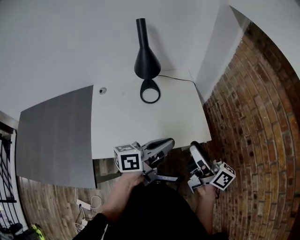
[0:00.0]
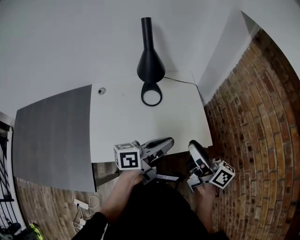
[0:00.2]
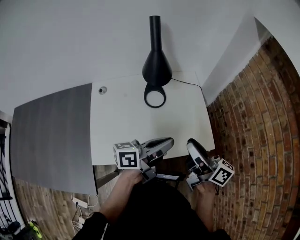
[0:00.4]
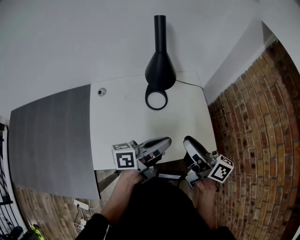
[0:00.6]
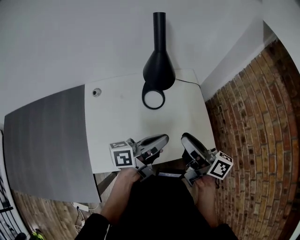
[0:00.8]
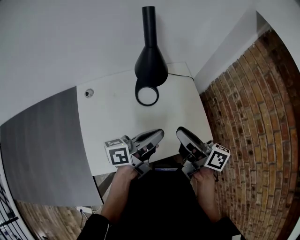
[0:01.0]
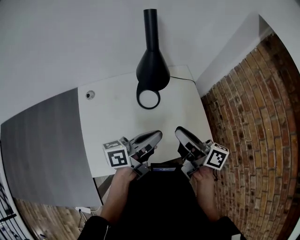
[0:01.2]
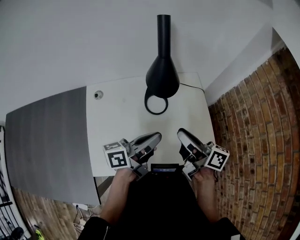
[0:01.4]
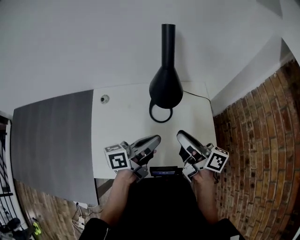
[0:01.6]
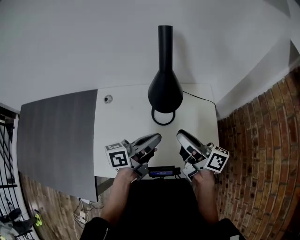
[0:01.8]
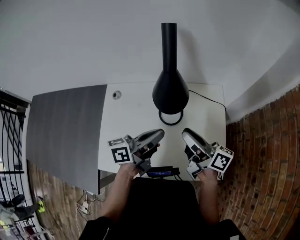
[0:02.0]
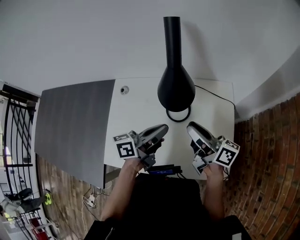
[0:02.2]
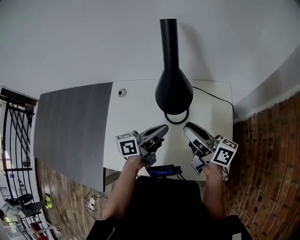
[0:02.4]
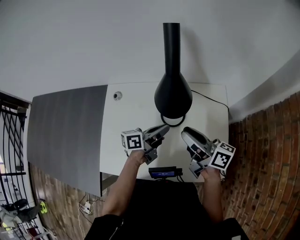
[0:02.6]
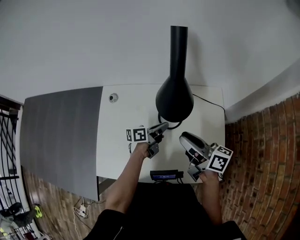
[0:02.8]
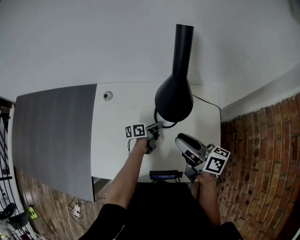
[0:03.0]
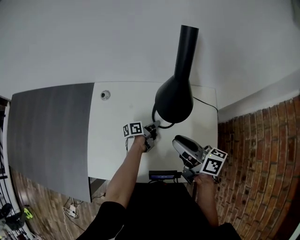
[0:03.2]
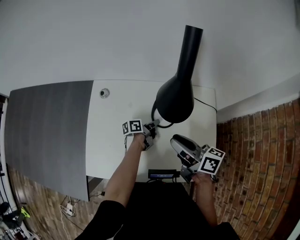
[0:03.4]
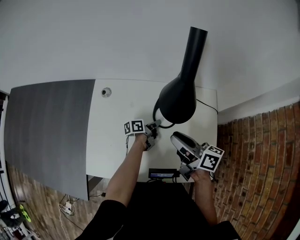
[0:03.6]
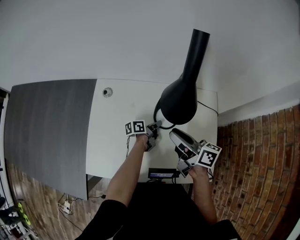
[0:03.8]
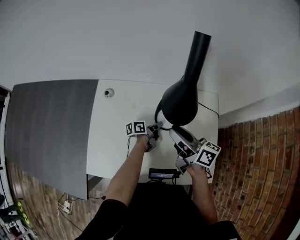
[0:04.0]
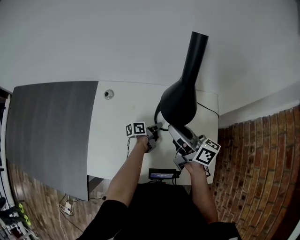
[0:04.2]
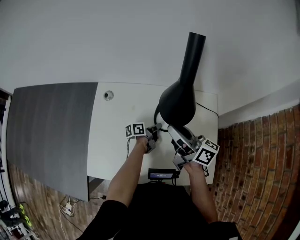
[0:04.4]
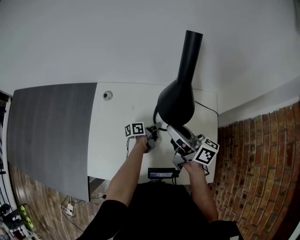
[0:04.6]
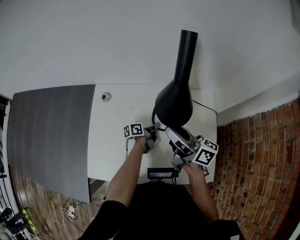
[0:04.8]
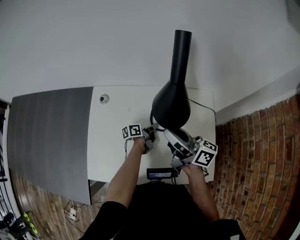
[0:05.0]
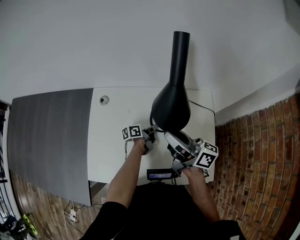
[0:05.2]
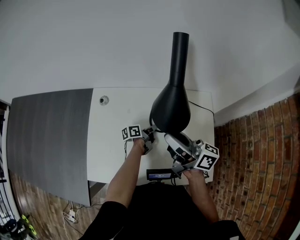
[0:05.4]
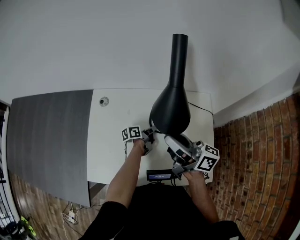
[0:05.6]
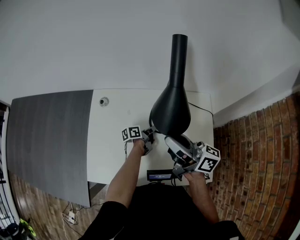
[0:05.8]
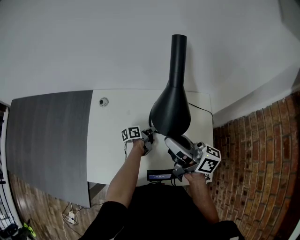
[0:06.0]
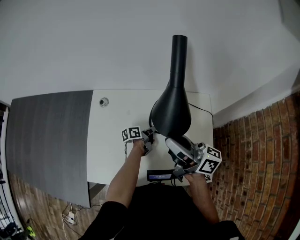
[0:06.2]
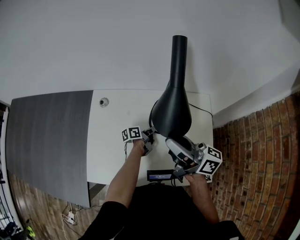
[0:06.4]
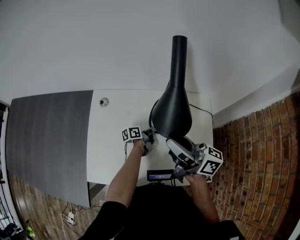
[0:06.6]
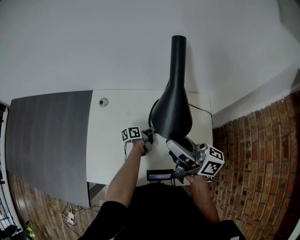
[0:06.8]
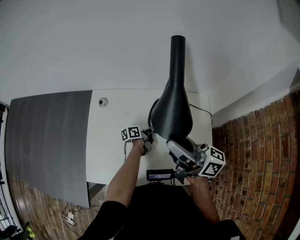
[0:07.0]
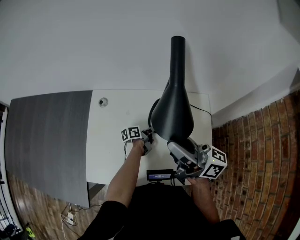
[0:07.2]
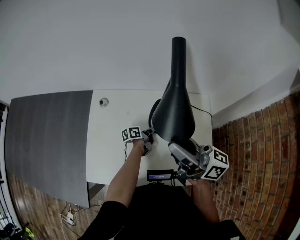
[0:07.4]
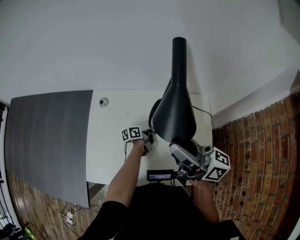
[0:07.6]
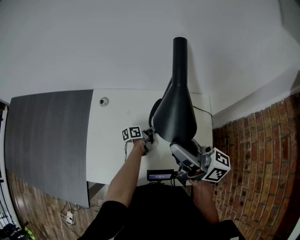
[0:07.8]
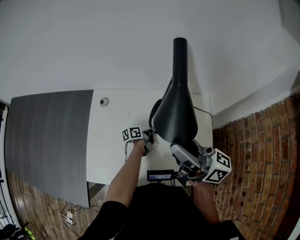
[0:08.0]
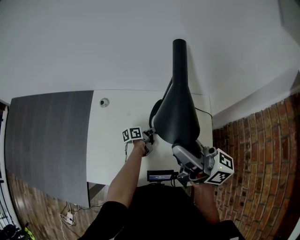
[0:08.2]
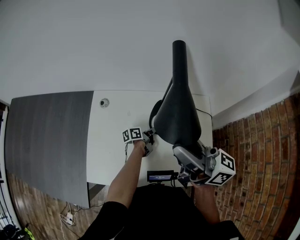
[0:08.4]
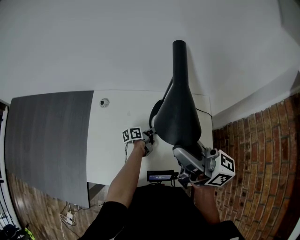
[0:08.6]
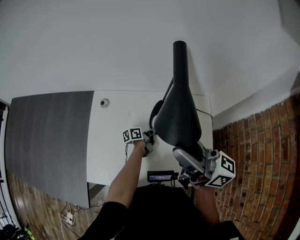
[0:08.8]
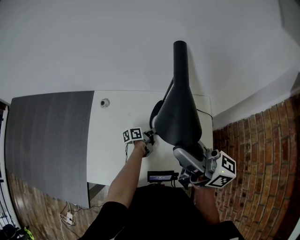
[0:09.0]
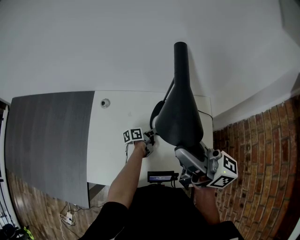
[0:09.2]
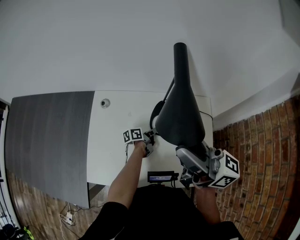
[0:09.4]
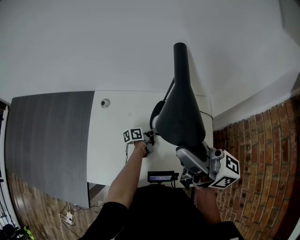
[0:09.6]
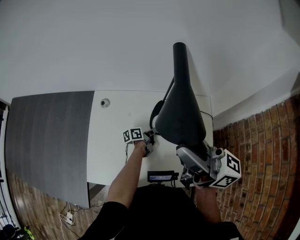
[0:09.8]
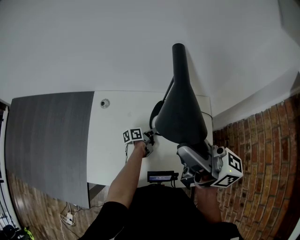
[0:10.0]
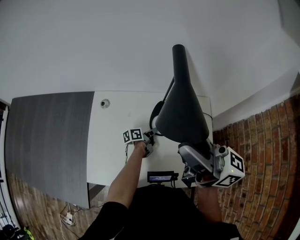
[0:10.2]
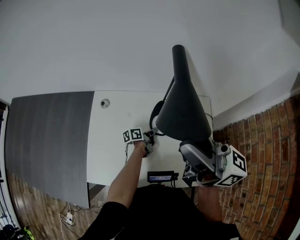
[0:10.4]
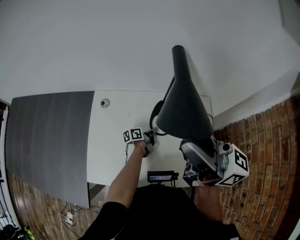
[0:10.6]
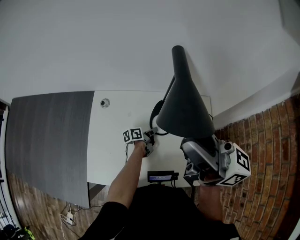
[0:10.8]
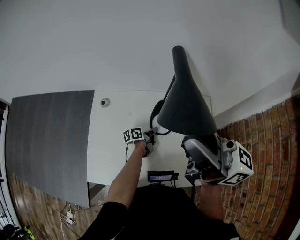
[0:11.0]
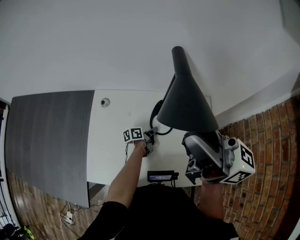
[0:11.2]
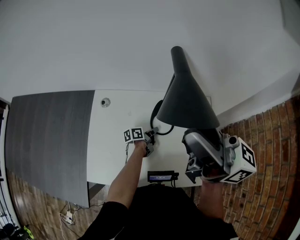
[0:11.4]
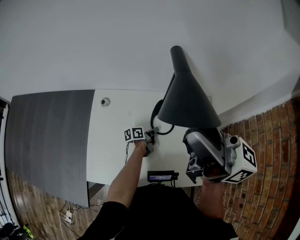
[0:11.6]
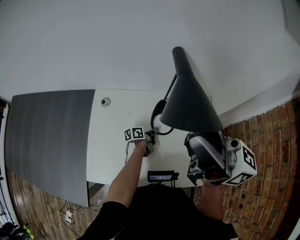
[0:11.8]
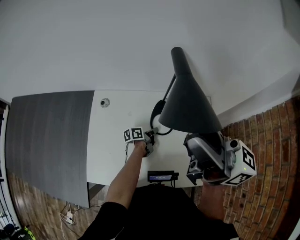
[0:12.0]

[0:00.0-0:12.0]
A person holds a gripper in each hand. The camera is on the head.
0:00.0 to 0:01.6: Both grippers travel together forward and to the left, about 25 cm.
0:01.6 to 0:03.0: The left gripper is displaced downward and forward by approximately 30 cm, and swivels about 30 degrees. Meanwhile the right gripper changes place by about 5 cm.
0:03.0 to 0:04.4: The right gripper travels forward by about 5 cm.
0:04.4 to 0:06.0: The right gripper goes approximately 5 cm upward.
0:06.0 to 0:07.6: The right gripper heads upward, covering about 5 cm.
0:07.6 to 0:09.0: The grippers move only a little.
0:09.0 to 0:10.4: The right gripper goes roughly 5 cm upward.
0:10.4 to 0:12.0: The grippers move only a little.

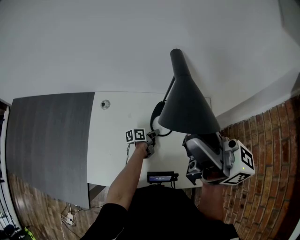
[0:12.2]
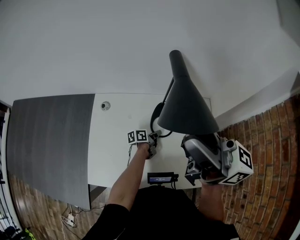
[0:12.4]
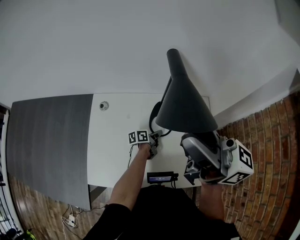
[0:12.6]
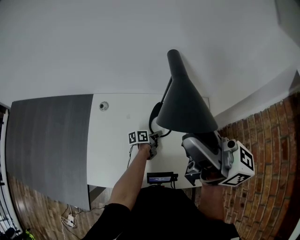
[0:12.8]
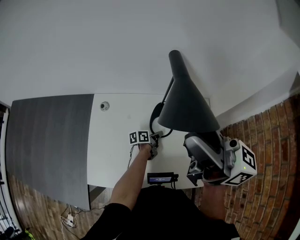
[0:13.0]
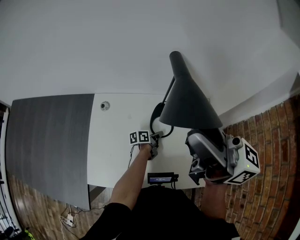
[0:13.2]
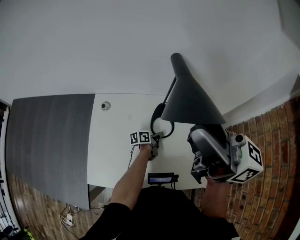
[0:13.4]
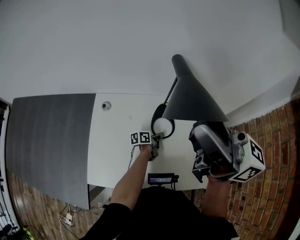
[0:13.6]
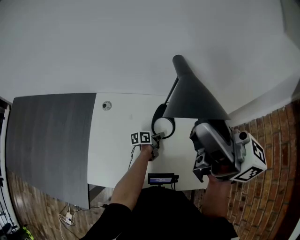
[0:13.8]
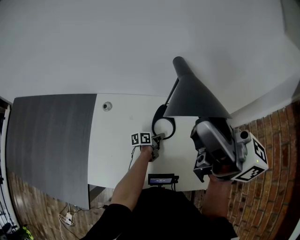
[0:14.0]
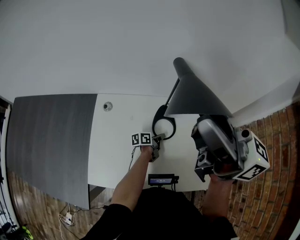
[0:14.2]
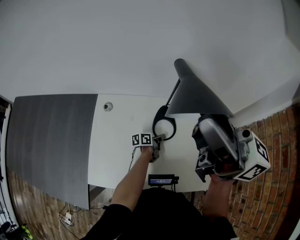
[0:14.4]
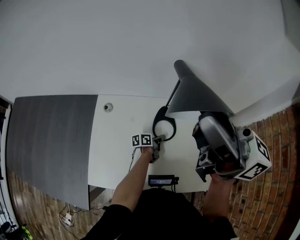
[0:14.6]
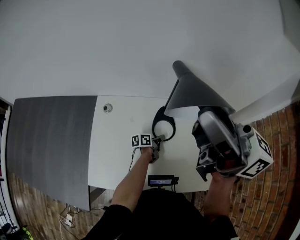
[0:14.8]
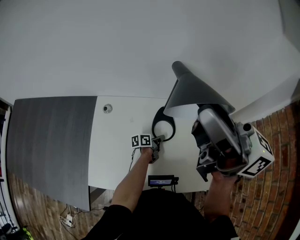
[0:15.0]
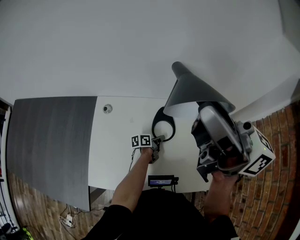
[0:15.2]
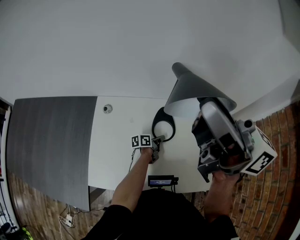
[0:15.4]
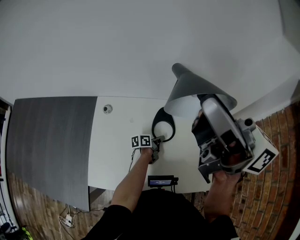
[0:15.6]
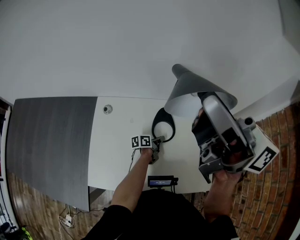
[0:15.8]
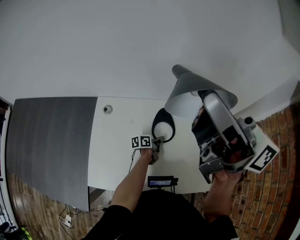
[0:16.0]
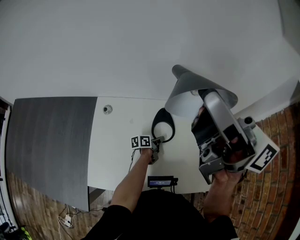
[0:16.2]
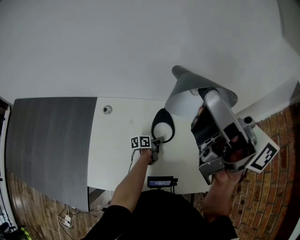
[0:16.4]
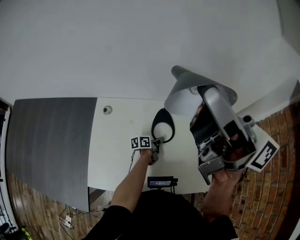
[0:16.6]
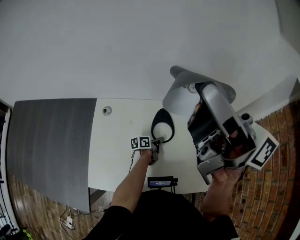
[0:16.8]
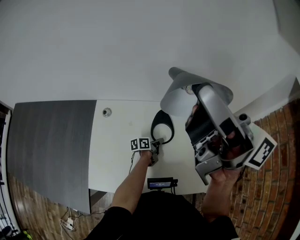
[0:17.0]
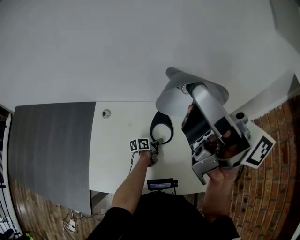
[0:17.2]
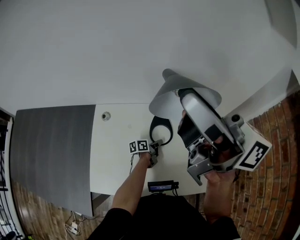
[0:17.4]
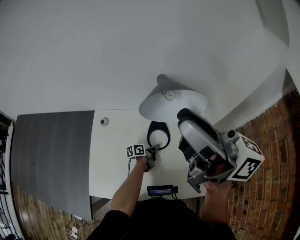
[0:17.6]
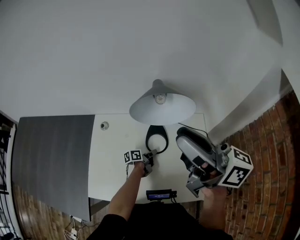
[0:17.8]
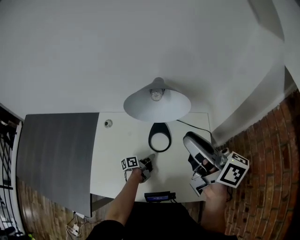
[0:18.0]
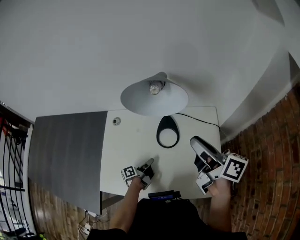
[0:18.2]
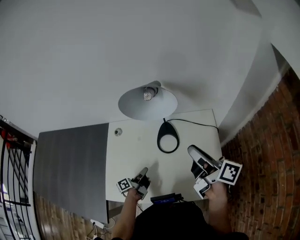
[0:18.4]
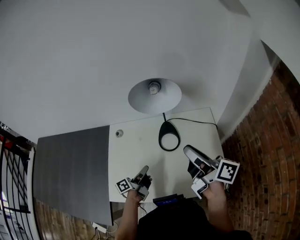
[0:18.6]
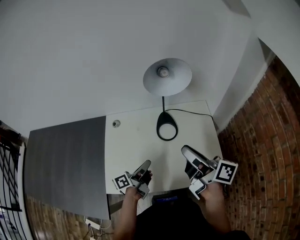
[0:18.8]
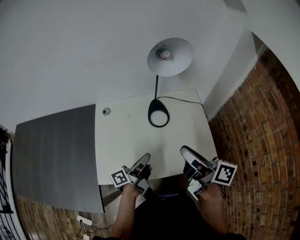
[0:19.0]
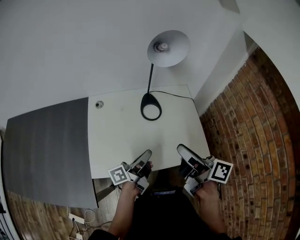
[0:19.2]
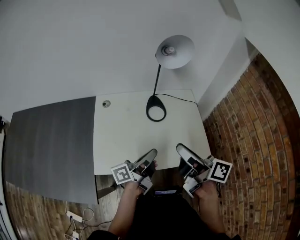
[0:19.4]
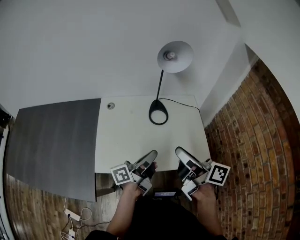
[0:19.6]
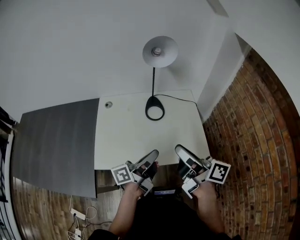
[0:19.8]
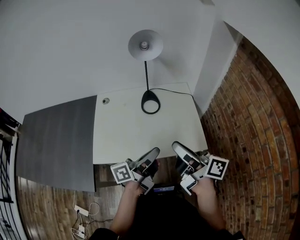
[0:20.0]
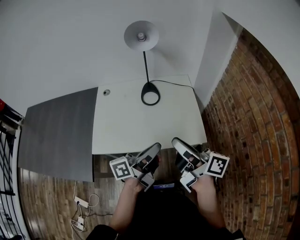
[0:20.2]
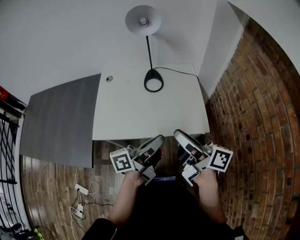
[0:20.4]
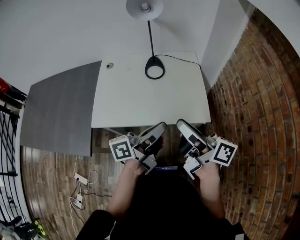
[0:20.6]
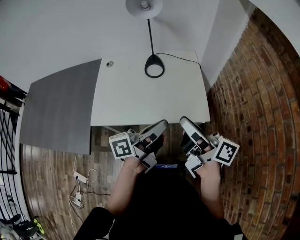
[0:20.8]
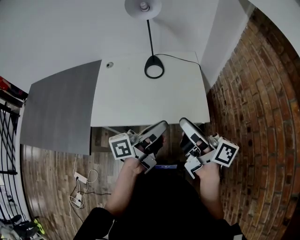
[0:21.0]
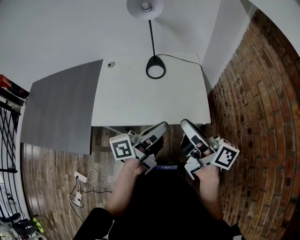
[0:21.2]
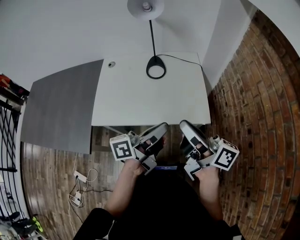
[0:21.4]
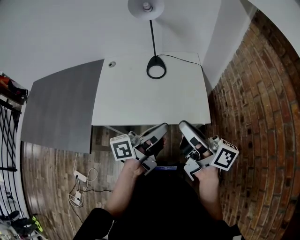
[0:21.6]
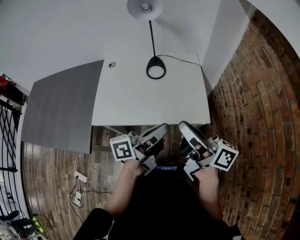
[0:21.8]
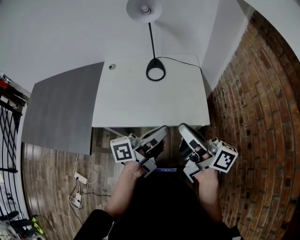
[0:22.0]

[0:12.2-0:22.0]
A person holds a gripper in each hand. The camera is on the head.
0:12.2 to 0:13.6: The grippers move only a little.
0:13.6 to 0:16.4: The grippers stay close to where they were, moving slightly.
0:16.4 to 0:17.8: The right gripper heads downward and to the right, covering approximately 10 cm.
0:17.8 to 0:19.2: The left gripper moves upward and backward, roughly 35 cm, and points its fingers roughly 30 degrees further upward. Meanwhile the right gripper shifts approximately 25 cm backward and downward, and swivels roughly 30 degrees.
0:19.2 to 0:20.6: The left gripper shifts roughly 20 cm backward, to the right and upward. The right gripper shifts roughly 15 cm backward and to the right.
0:20.6 to 0:22.0: The grippers move only a little.

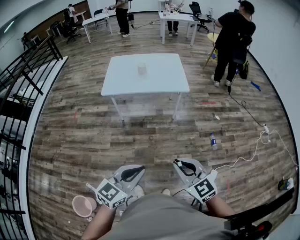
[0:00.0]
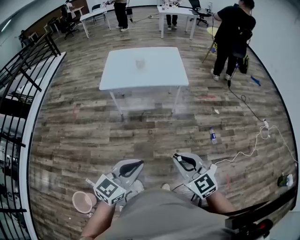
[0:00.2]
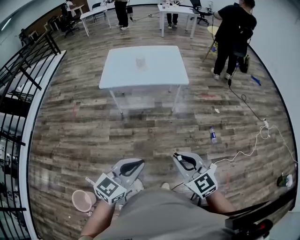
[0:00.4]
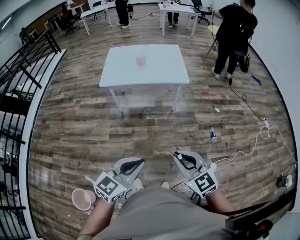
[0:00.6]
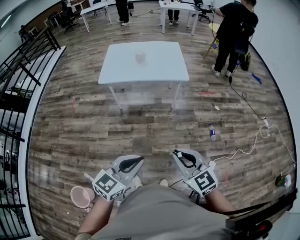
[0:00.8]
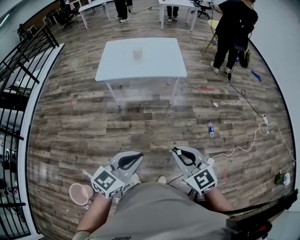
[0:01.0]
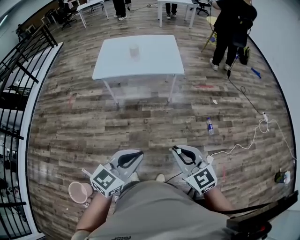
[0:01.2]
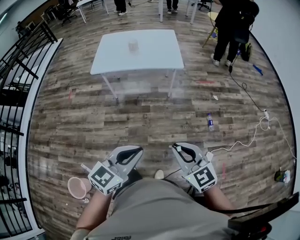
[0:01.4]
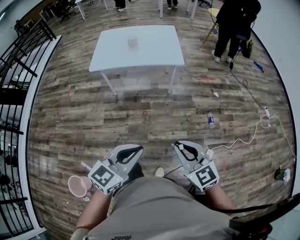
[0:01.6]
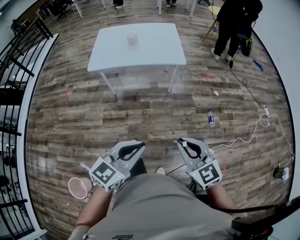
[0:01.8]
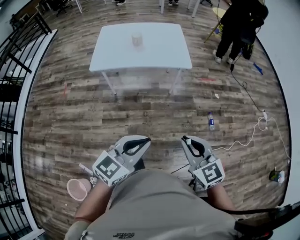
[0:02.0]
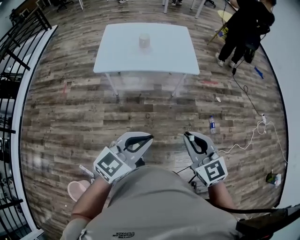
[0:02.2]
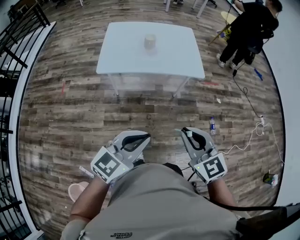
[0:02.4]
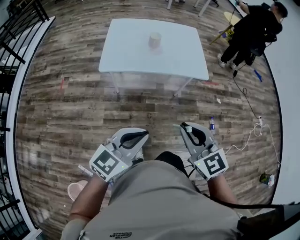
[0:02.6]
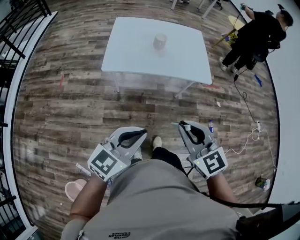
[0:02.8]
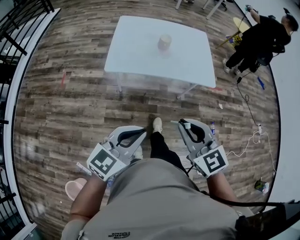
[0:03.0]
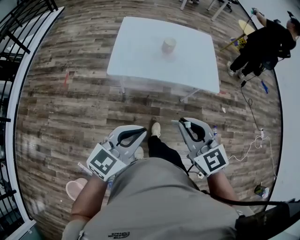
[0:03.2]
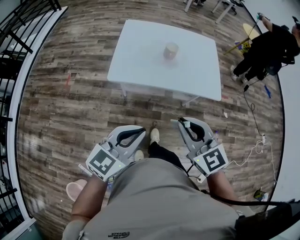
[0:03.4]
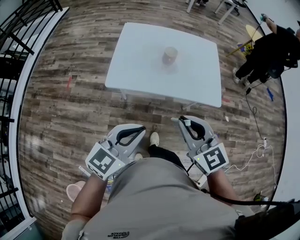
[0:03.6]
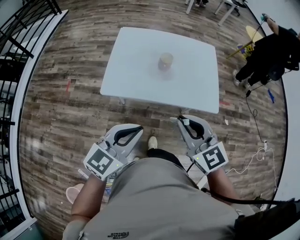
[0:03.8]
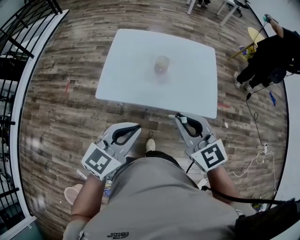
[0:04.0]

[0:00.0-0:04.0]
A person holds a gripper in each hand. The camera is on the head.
0:00.0 to 0:01.4: Both grippers travel together to the right, some 5 cm.
0:01.4 to 0:02.6: The right gripper shifts roughly 30 cm forward and to the left. Meanwhile the left gripper shifts some 30 cm to the left and forward.
0:02.6 to 0:04.0: The two grippers go approximately 30 cm forward.
